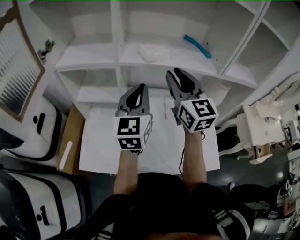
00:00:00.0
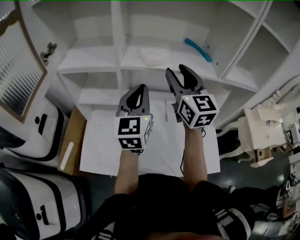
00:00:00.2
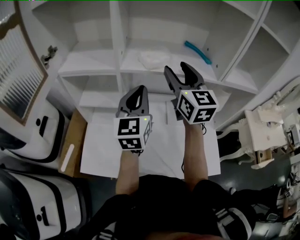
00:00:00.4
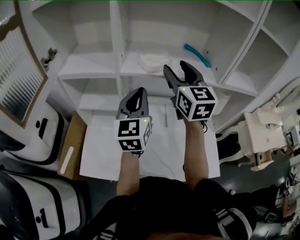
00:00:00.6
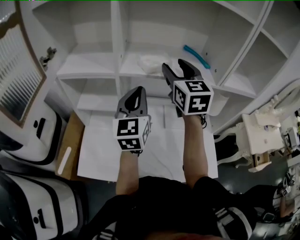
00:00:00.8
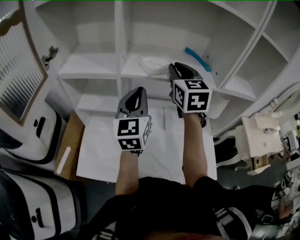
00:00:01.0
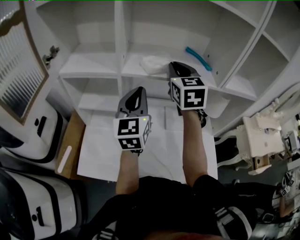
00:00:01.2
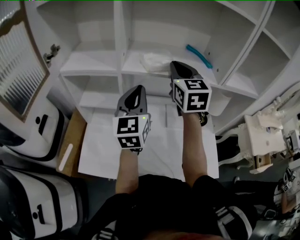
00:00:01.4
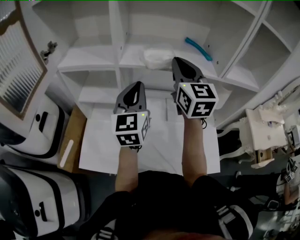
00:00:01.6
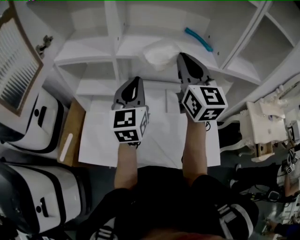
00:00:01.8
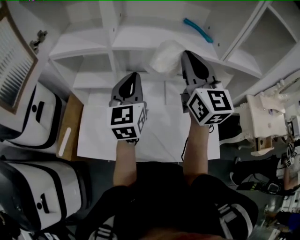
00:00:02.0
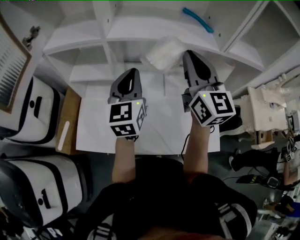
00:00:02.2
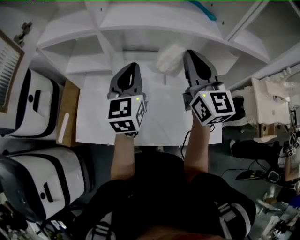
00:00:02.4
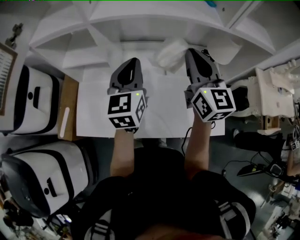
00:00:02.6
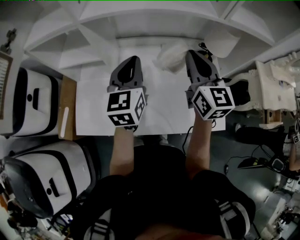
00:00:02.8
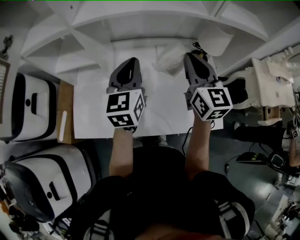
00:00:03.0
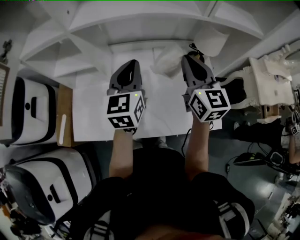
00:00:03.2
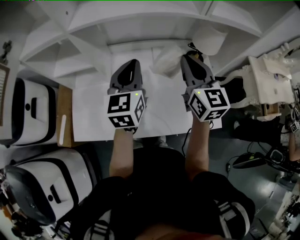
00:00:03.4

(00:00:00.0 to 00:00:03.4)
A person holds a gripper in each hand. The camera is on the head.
00:00:00.0 - 00:00:01.6: The right gripper opens, then closes once more.
00:00:01.6 - 00:00:03.4: The right gripper heads downward, to the right and backward, covering about 25 cm. Meanwhile the left gripper travels to the right and downward by approximately 15 cm.

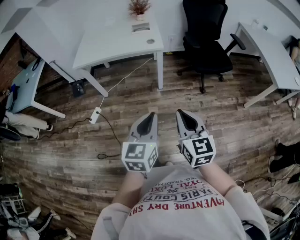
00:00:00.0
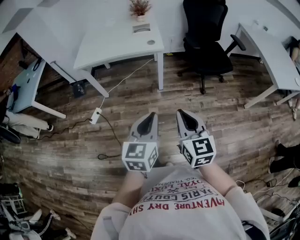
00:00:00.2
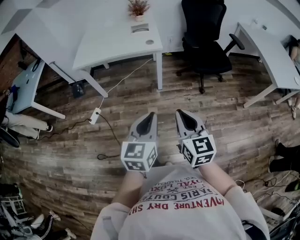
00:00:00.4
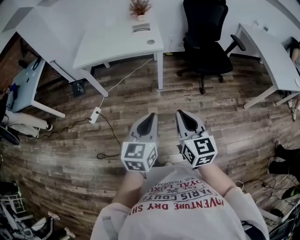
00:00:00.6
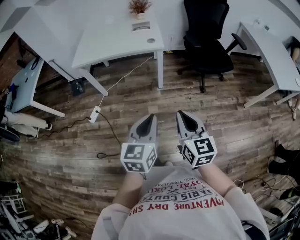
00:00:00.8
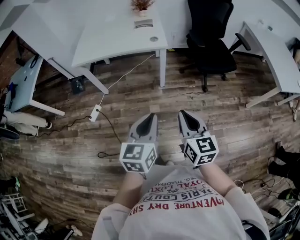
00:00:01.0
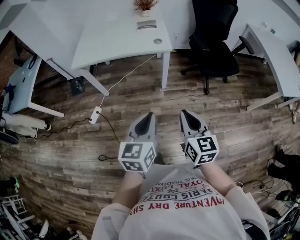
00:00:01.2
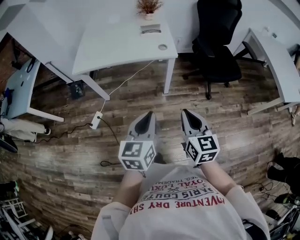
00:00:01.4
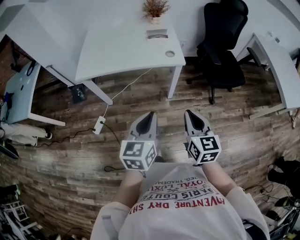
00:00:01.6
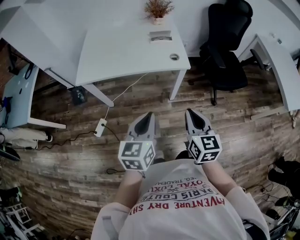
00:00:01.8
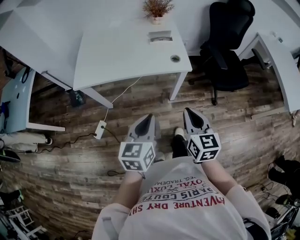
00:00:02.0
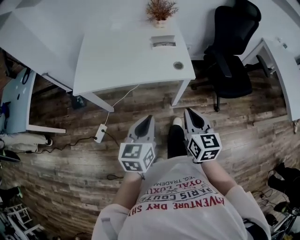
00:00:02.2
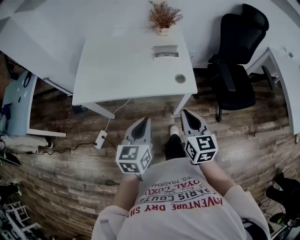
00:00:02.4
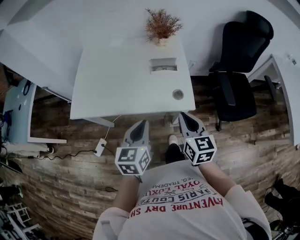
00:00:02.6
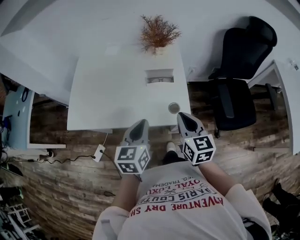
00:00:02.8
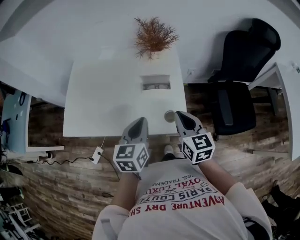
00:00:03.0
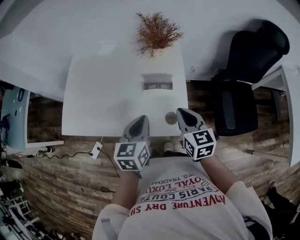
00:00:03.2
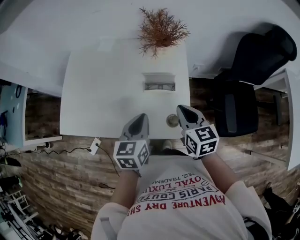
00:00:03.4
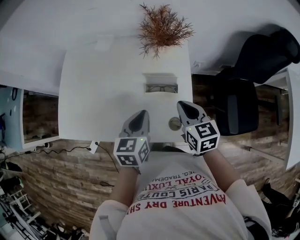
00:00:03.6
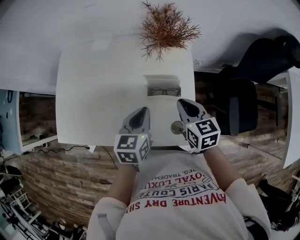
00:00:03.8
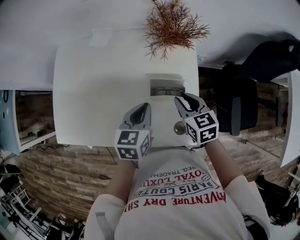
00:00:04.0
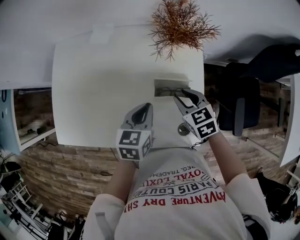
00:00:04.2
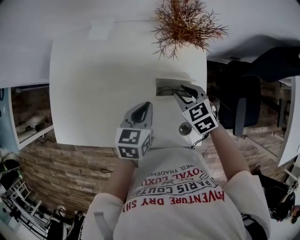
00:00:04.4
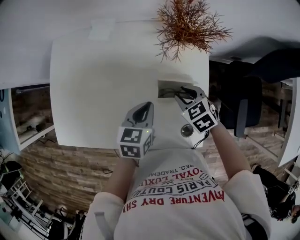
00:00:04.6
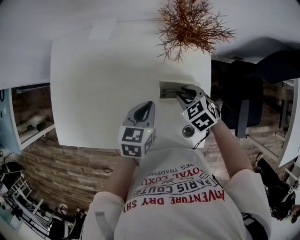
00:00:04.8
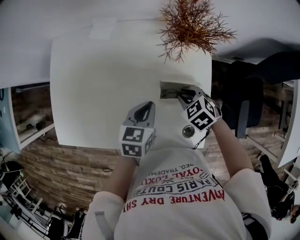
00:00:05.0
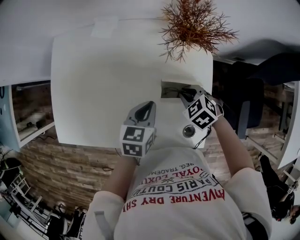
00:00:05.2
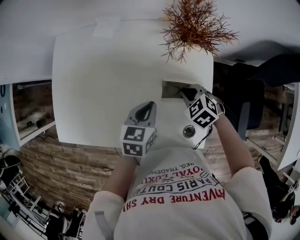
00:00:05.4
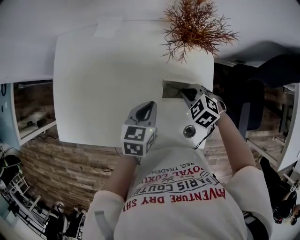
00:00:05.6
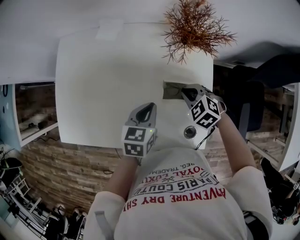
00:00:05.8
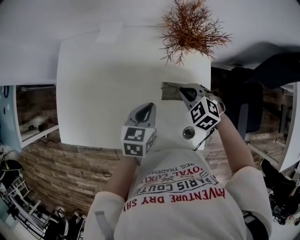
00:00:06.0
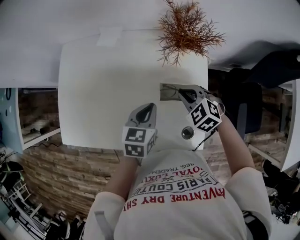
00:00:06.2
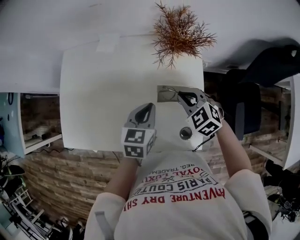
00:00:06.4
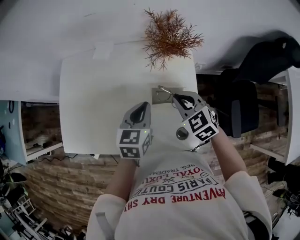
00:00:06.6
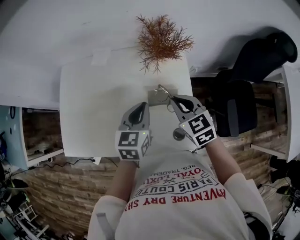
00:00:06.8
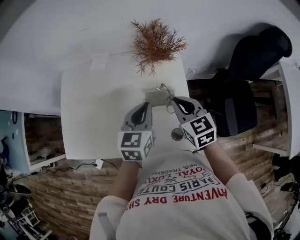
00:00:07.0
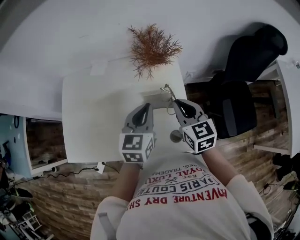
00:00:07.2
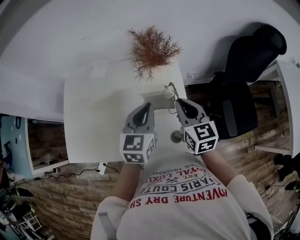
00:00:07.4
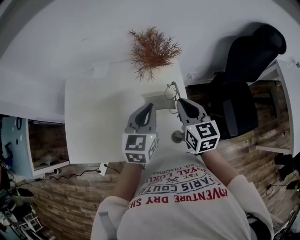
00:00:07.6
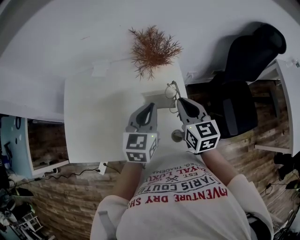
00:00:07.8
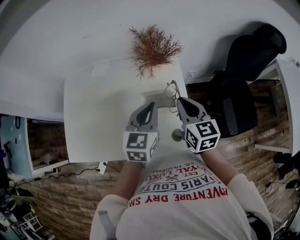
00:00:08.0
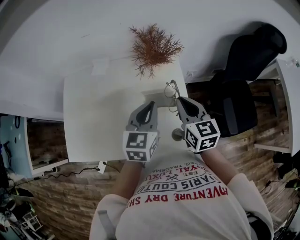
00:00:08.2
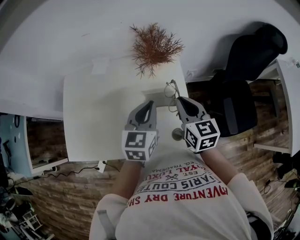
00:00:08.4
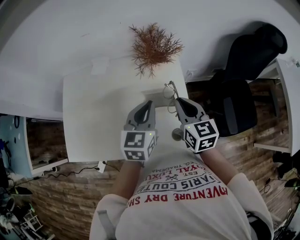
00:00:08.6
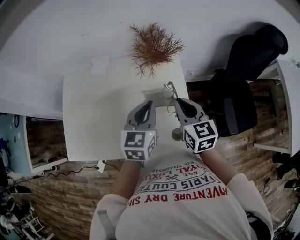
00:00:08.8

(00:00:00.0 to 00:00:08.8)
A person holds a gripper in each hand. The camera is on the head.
00:00:00.0 - 00:00:01.4: Both grippers move forward and to the left, some 15 cm.
00:00:01.4 - 00:00:03.0: The two grippers travel together, forward, about 50 cm.
00:00:03.0 - 00:00:04.4: The grippers both shift forward and downward by some 20 cm. The right gripper tilts its fingers roughly 30 degrees downward, and opens up.
00:00:04.4 - 00:00:05.8: The right gripper changes its angle by roughly 20 degrees, and closes up.
00:00:05.8 - 00:00:07.4: The right gripper moves upward, approximately 20 cm, and tilts its fingers some 40 degrees upward; the left gripper moves upward and to the right, roughly 15 cm, and changes its angle by about 30 degrees.
00:00:07.4 - 00:00:08.8: The grippers move only a little.

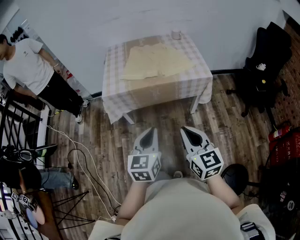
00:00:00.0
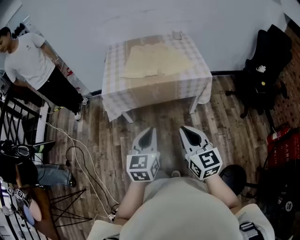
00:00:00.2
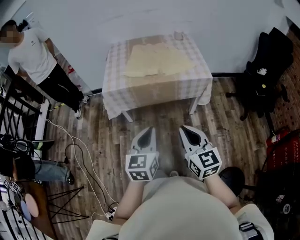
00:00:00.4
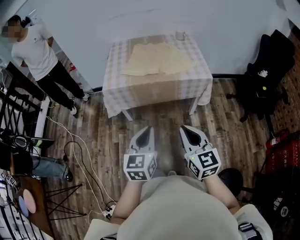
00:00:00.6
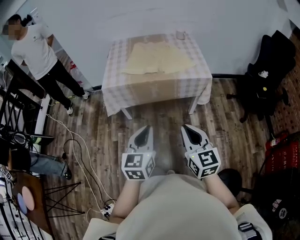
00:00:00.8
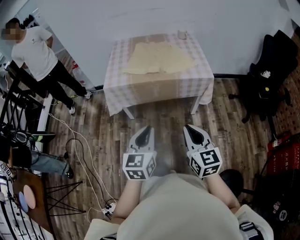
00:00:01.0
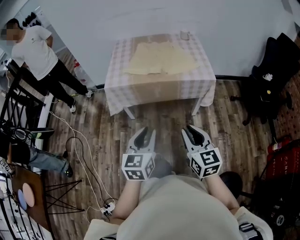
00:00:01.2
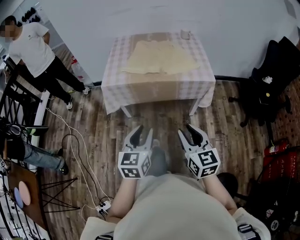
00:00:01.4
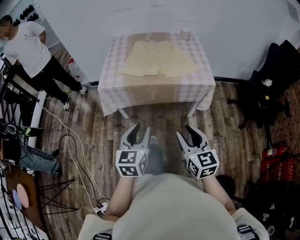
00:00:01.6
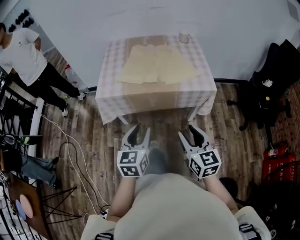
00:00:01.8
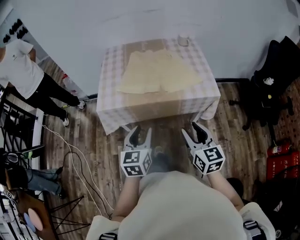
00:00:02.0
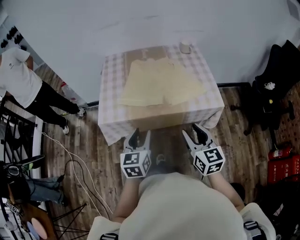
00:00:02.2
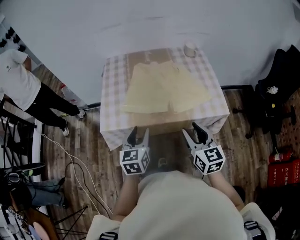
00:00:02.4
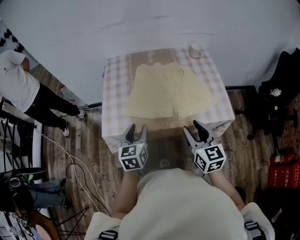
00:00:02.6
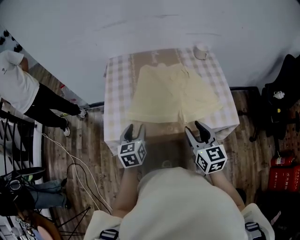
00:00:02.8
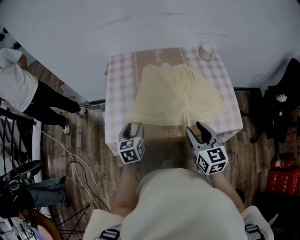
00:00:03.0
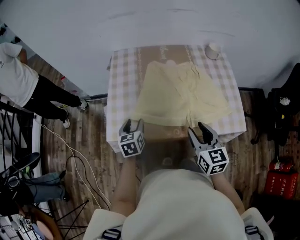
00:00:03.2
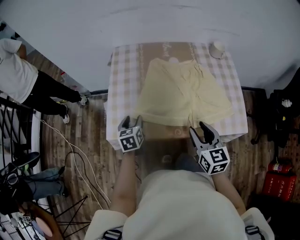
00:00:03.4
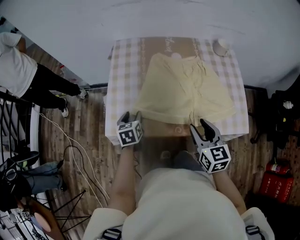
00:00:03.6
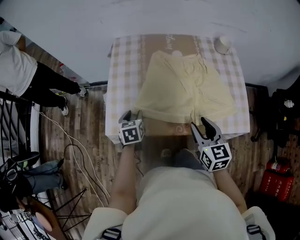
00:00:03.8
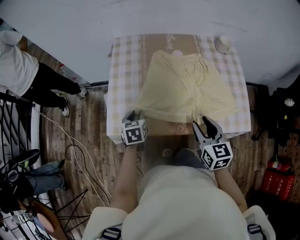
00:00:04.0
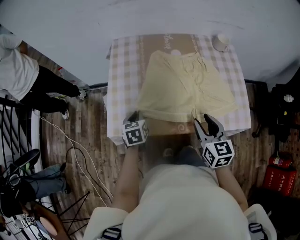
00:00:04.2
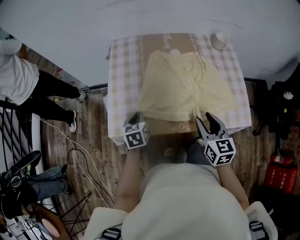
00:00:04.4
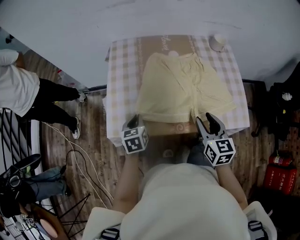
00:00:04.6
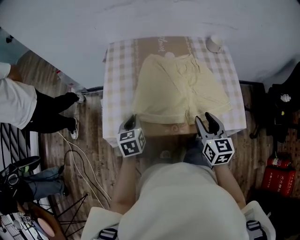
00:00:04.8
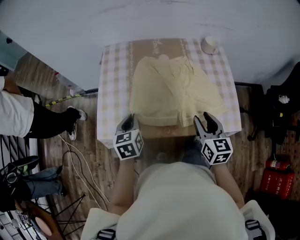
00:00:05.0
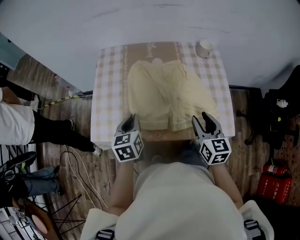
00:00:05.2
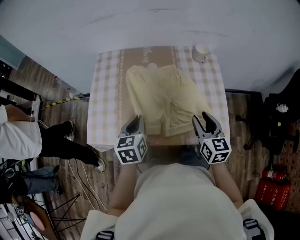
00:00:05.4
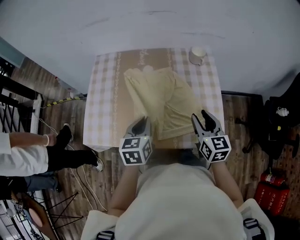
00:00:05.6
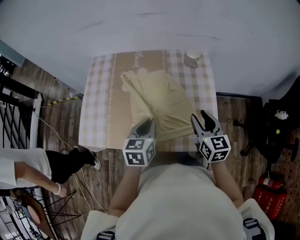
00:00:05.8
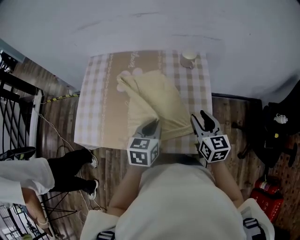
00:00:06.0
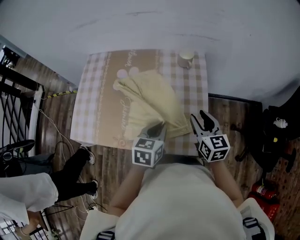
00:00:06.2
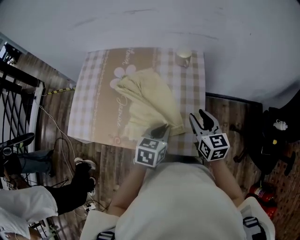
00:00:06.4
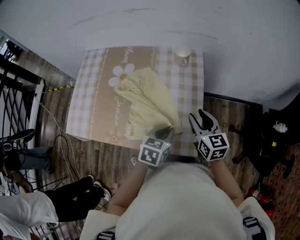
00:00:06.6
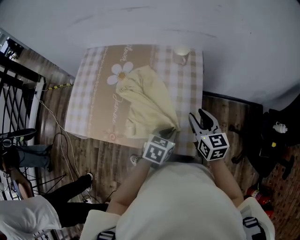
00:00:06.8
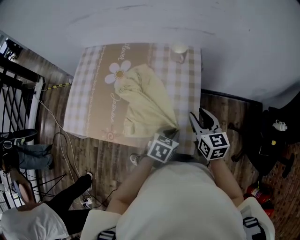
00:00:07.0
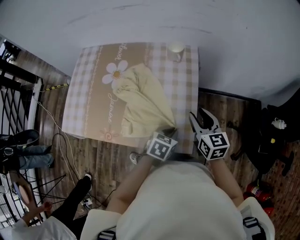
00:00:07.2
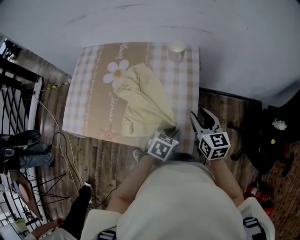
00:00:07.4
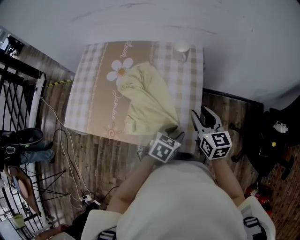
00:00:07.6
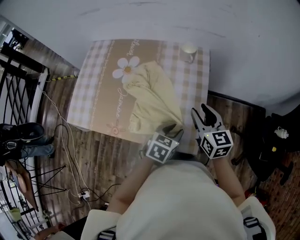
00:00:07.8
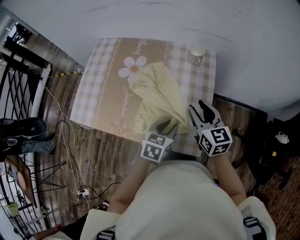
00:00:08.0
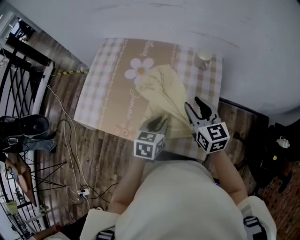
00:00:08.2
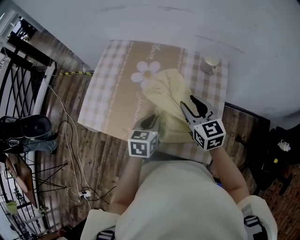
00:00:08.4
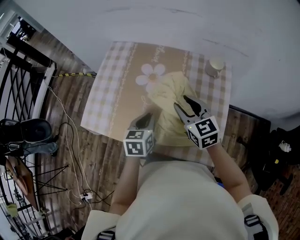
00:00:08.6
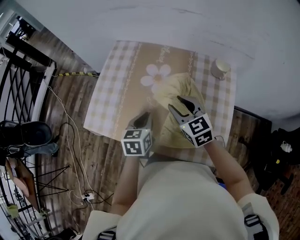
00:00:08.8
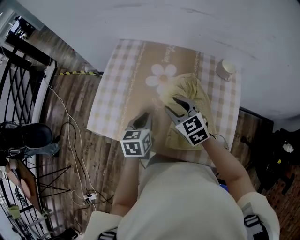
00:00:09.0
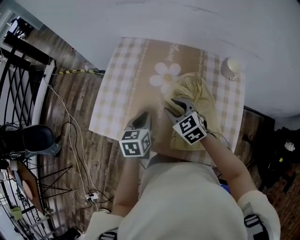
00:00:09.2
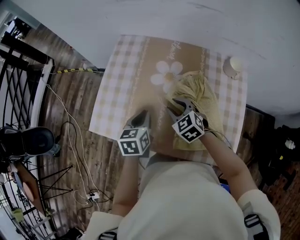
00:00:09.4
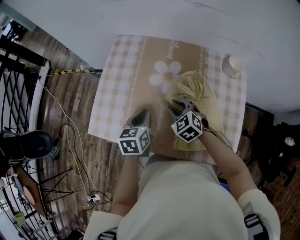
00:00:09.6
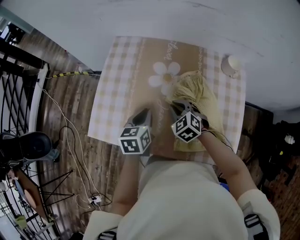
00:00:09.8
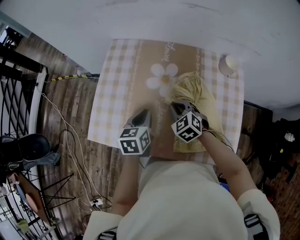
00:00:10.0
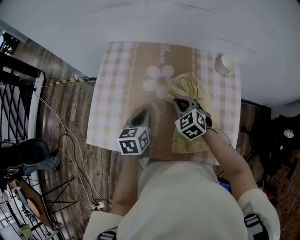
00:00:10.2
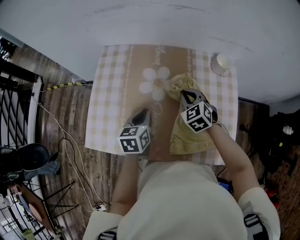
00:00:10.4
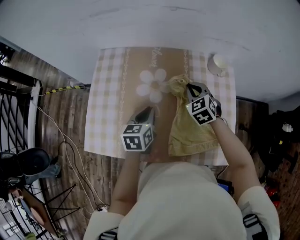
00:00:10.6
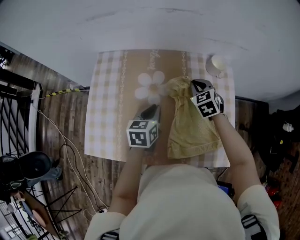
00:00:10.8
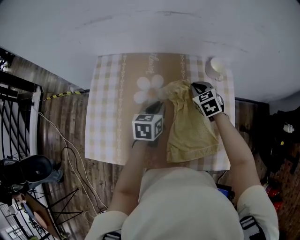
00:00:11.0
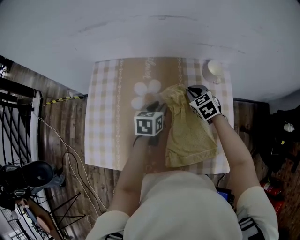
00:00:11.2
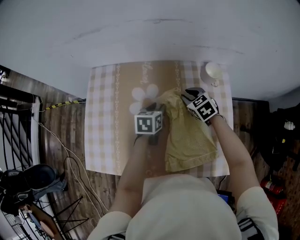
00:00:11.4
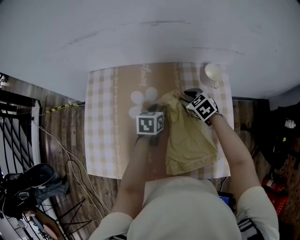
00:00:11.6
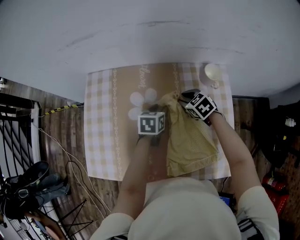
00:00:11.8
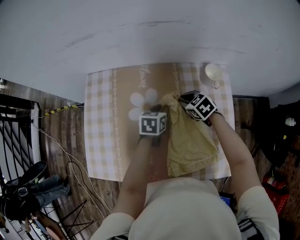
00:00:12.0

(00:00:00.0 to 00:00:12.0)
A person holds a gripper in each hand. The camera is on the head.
00:00:00.0 - 00:00:01.6: The right gripper moves about 5 cm, and opens, while the left gripper opens its fingers.
00:00:01.6 - 00:00:03.0: The two grippers go approximately 35 cm forward.
00:00:03.0 - 00:00:04.4: The left gripper ends up some 5 cm from where it was, and closes up.
00:00:04.4 - 00:00:06.0: The right gripper shifts roughly 25 cm to the right and forward. Meanwhile the left gripper goes roughly 35 cm to the right.
00:00:06.0 - 00:00:07.6: The right gripper heads to the right, covering about 5 cm. Meanwhile the left gripper moves to the right and downward, about 20 cm, turns by approximately 20 degrees, and opens.
00:00:07.6 - 00:00:09.0: The right gripper shifts by approximately 35 cm, and turns by approximately 30 degrees, while the left gripper moves roughly 35 cm, changes its angle by some 40 degrees, and closes its fingers.
00:00:09.0 - 00:00:10.4: The right gripper shifts some 10 cm to the right, forward and downward, swivels roughly 30 degrees, and closes up. The left gripper goes some 5 cm forward.
00:00:10.4 - 00:00:12.0: The right gripper goes roughly 10 cm forward, downward and to the right, and swivels roughly 30 degrees. The left gripper travels forward, to the right and downward by some 20 cm, and changes its angle by some 20 degrees.
